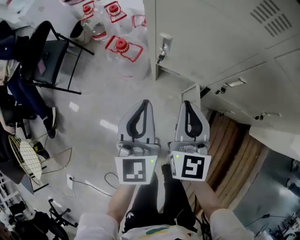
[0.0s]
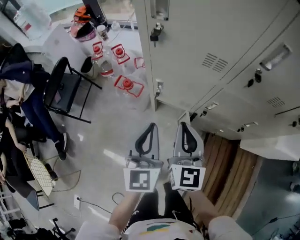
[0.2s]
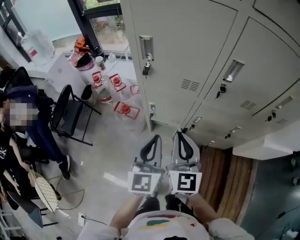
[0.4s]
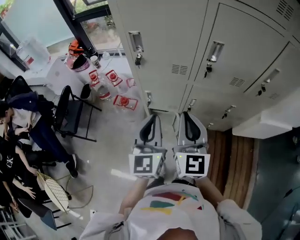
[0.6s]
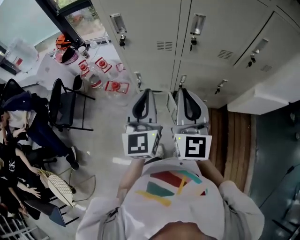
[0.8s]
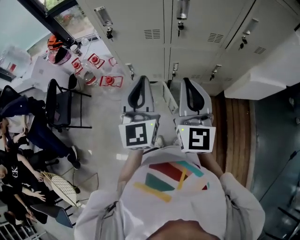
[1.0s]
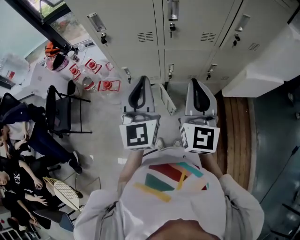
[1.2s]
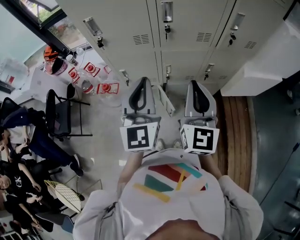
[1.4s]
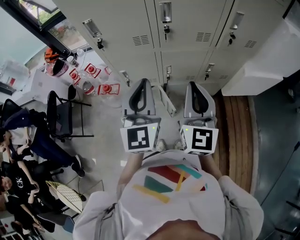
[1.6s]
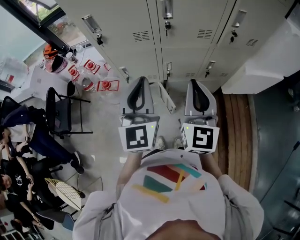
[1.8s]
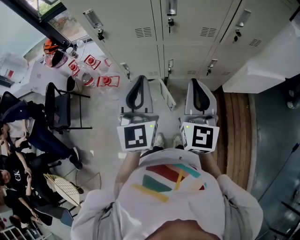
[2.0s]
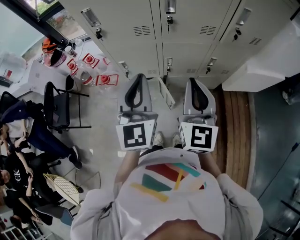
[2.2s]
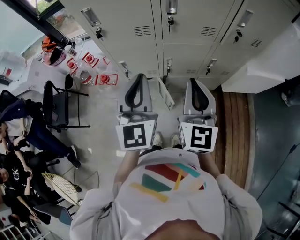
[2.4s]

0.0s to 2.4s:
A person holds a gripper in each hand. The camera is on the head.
0.0s to 1.2s: The right gripper is displaced to the right, backward and upward by about 30 cm, and turns by roughly 30 degrees, while the left gripper heads to the right, upward and backward, covering some 25 cm, and turns by some 20 degrees.
1.2s to 2.4s: The grippers move only a little.

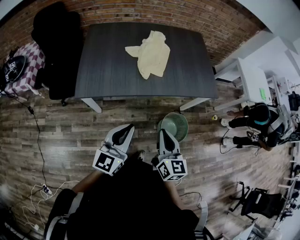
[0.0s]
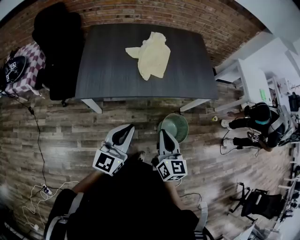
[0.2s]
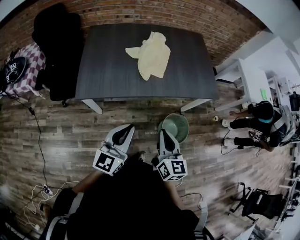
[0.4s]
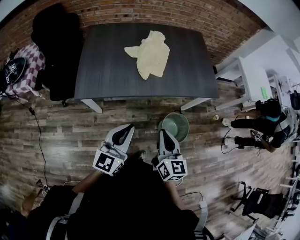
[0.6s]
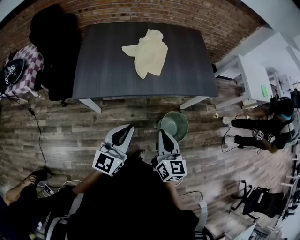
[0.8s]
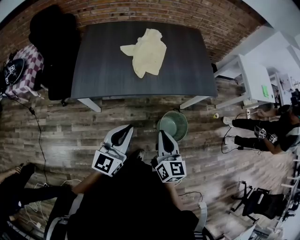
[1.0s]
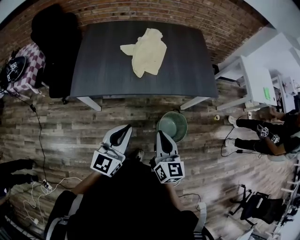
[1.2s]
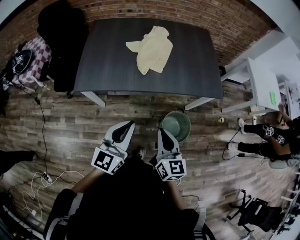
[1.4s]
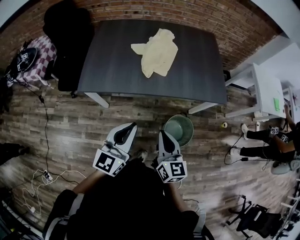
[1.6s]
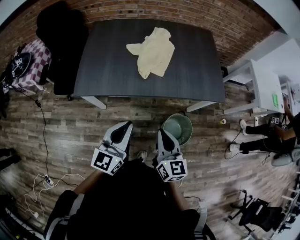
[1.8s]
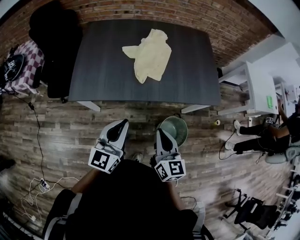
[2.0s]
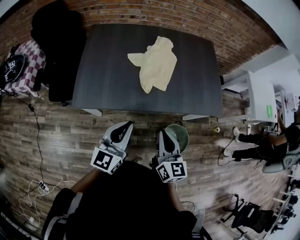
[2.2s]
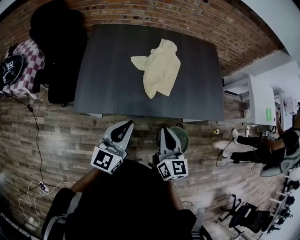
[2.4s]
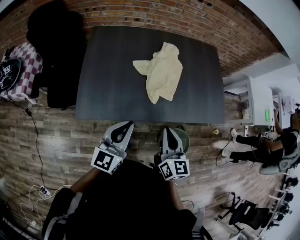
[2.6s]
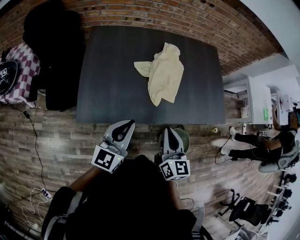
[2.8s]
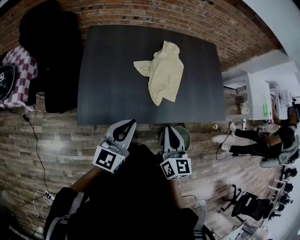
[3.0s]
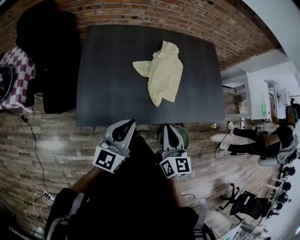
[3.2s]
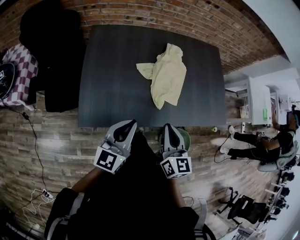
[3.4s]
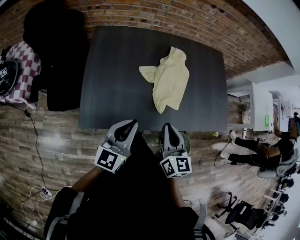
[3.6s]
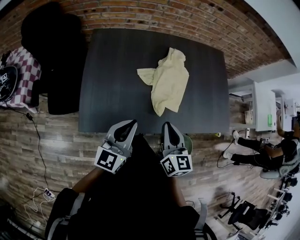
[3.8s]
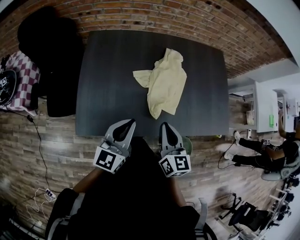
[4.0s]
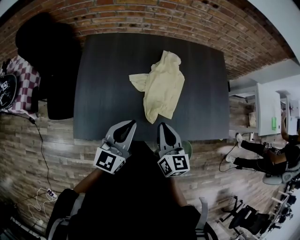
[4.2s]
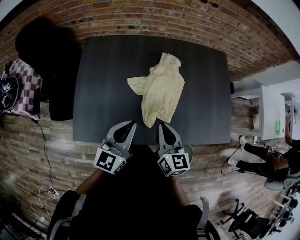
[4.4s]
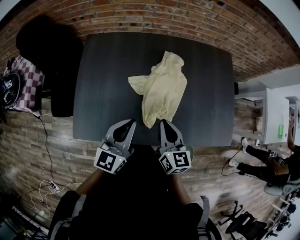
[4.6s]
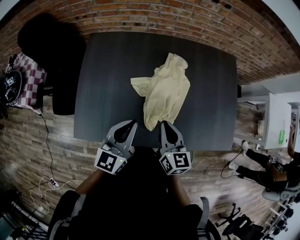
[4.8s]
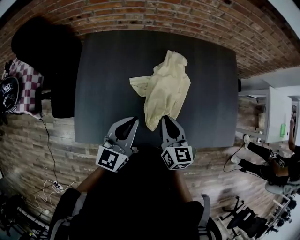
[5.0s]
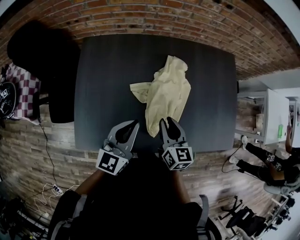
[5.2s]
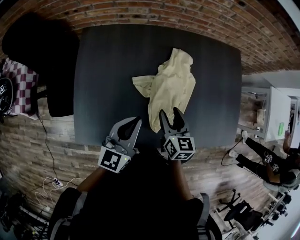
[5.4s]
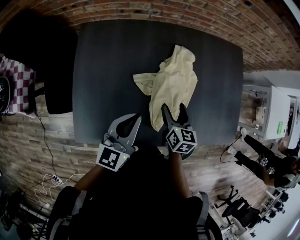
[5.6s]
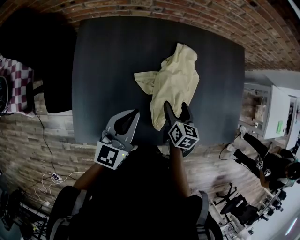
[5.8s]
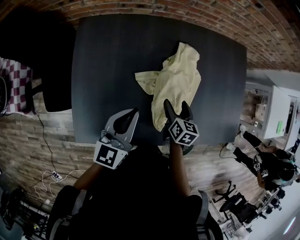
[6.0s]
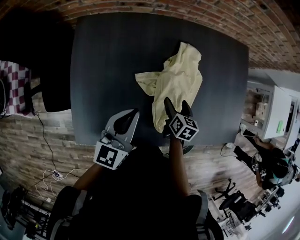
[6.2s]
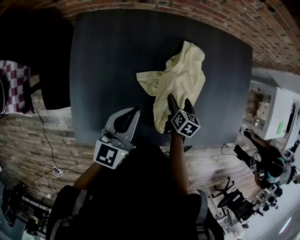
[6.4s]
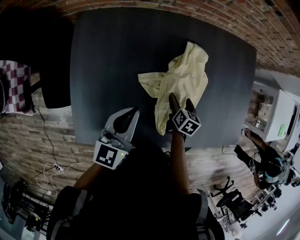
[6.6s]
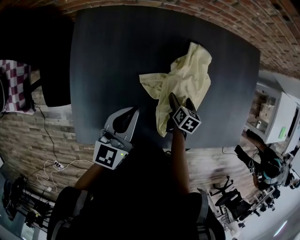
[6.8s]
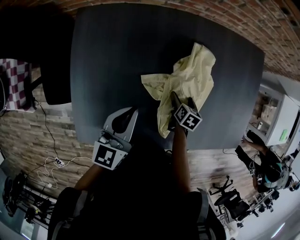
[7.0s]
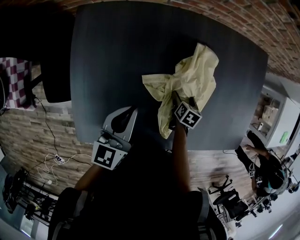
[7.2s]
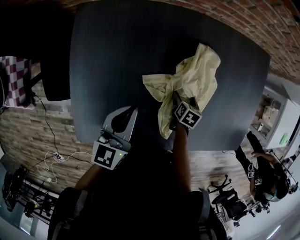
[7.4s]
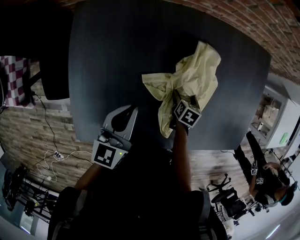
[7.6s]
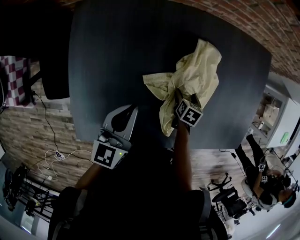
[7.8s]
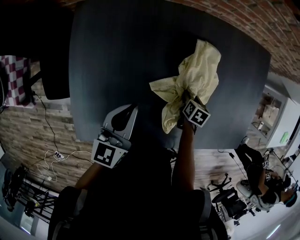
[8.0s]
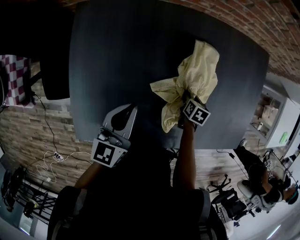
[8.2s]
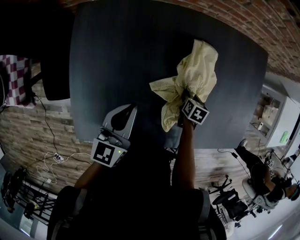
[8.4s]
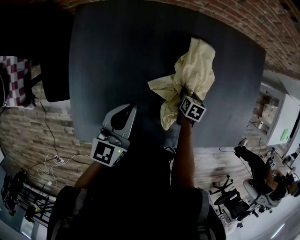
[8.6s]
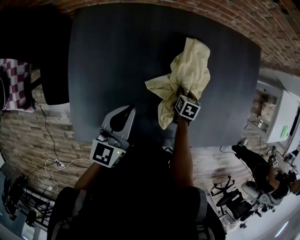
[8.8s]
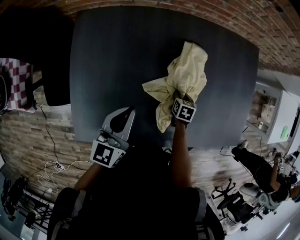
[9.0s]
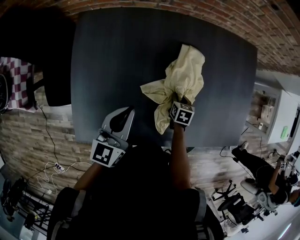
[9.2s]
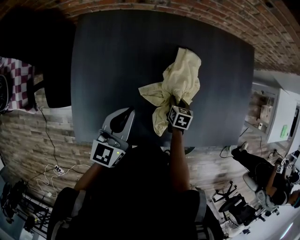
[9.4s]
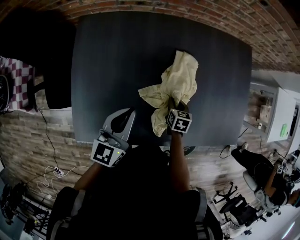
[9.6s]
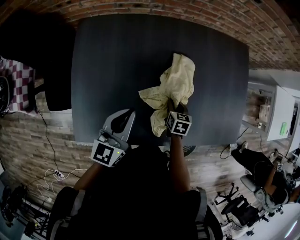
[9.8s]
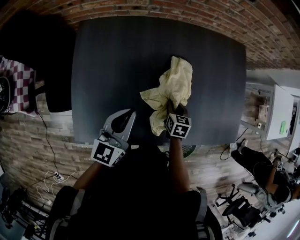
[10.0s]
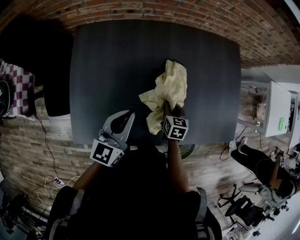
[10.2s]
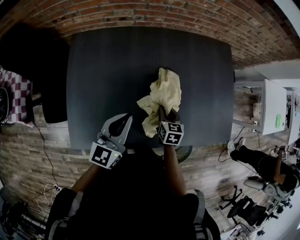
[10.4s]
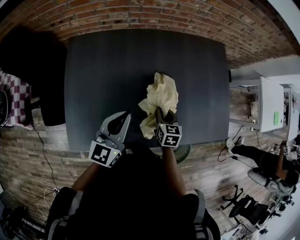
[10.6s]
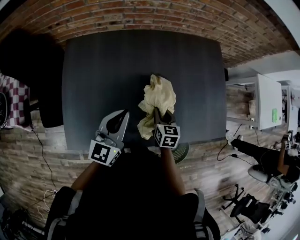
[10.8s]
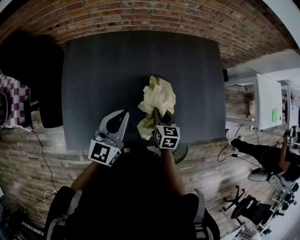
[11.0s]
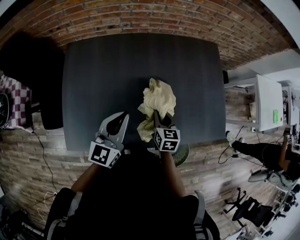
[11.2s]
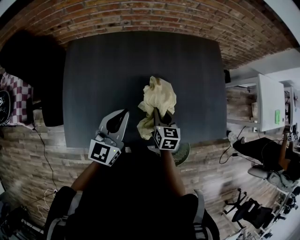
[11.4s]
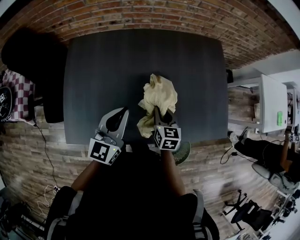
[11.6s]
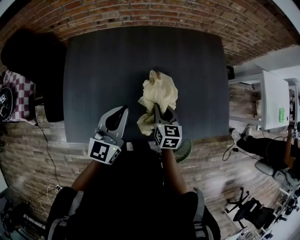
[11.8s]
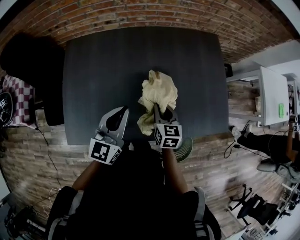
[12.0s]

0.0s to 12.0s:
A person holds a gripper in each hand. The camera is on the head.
0.0s to 1.6s: Both grippers move to the right, approximately 5 cm.
1.6s to 3.0s: Both grippers move forward and to the left, roughly 30 cm.
3.0s to 4.4s: The right gripper heads forward, covering some 15 cm. The left gripper shifts some 15 cm forward and to the right.
4.4s to 6.0s: The right gripper heads downward and forward, covering approximately 25 cm, turns by about 30 degrees, and opens its fingers, while the left gripper heads forward and to the left, covering about 15 cm.
6.0s to 7.6s: The left gripper shifts some 10 cm downward and forward, while the right gripper moves downward, approximately 15 cm, and rotates approximately 30 degrees.
7.6s to 9.0s: The left gripper shifts by about 5 cm. Meanwhile the right gripper closes its fingers.
9.0s to 10.4s: The right gripper goes some 15 cm upward and backward. Meanwhile the left gripper travels to the right and backward by approximately 10 cm.
10.4s to 12.0s: The left gripper travels to the right by some 10 cm. The right gripper goes about 10 cm upward.

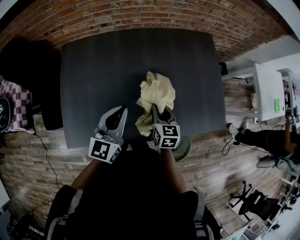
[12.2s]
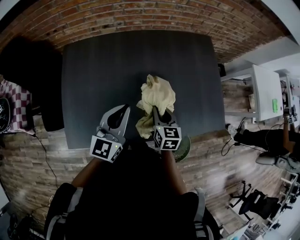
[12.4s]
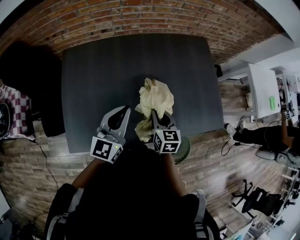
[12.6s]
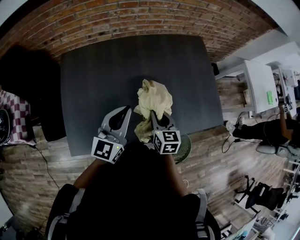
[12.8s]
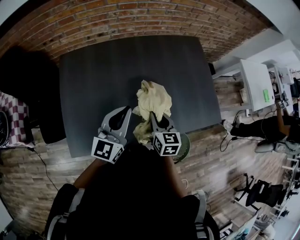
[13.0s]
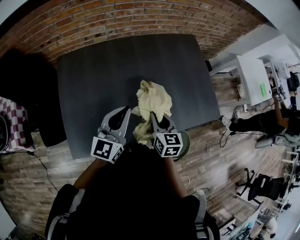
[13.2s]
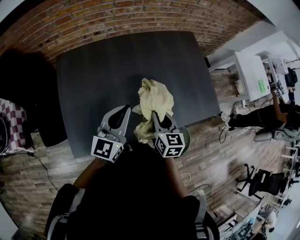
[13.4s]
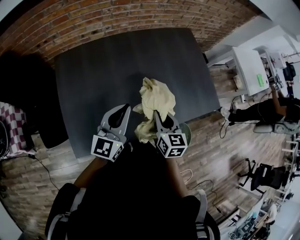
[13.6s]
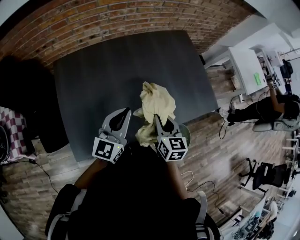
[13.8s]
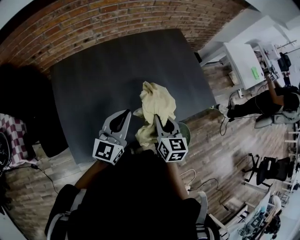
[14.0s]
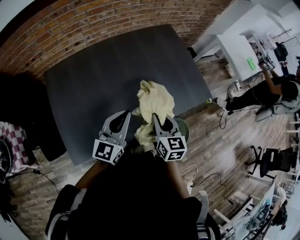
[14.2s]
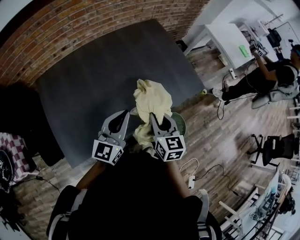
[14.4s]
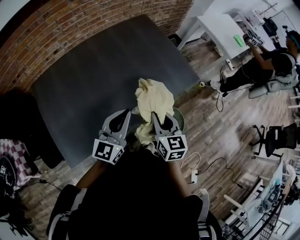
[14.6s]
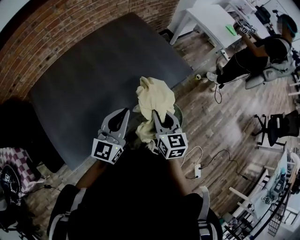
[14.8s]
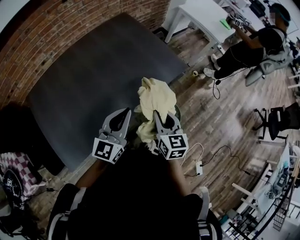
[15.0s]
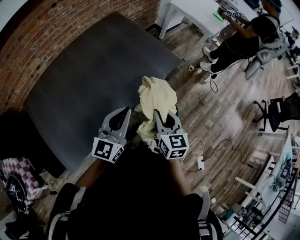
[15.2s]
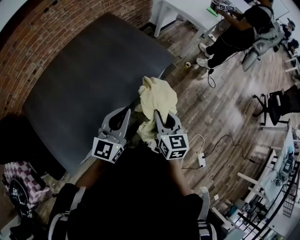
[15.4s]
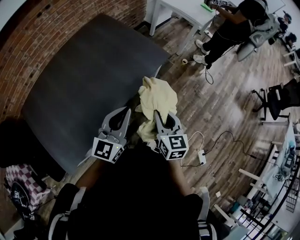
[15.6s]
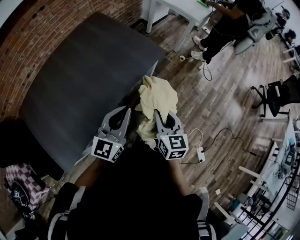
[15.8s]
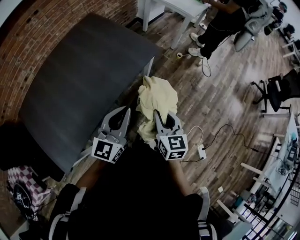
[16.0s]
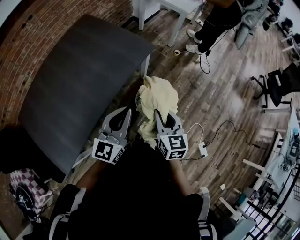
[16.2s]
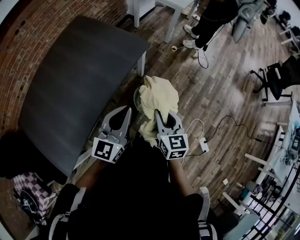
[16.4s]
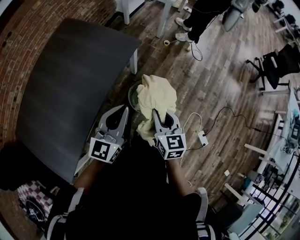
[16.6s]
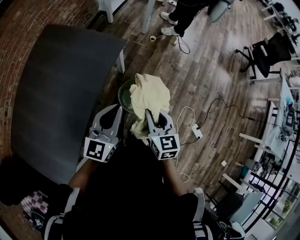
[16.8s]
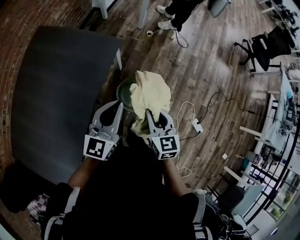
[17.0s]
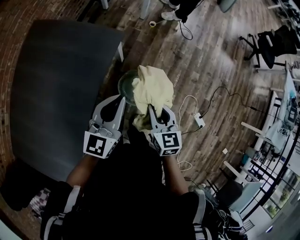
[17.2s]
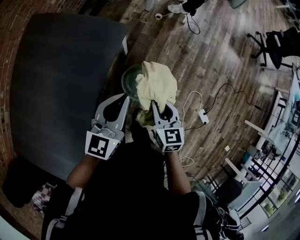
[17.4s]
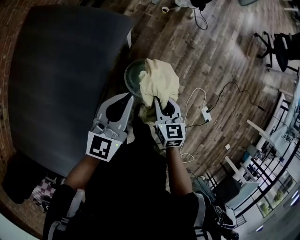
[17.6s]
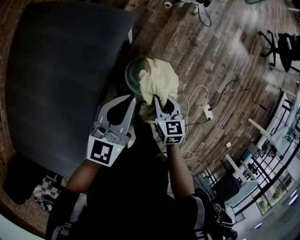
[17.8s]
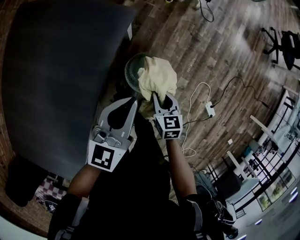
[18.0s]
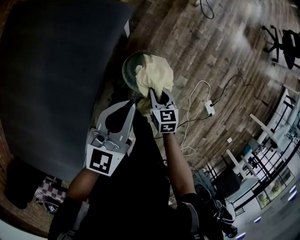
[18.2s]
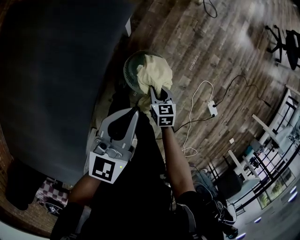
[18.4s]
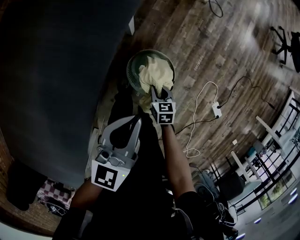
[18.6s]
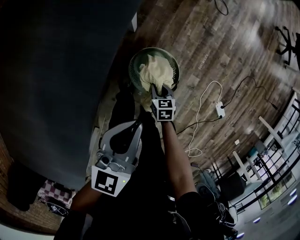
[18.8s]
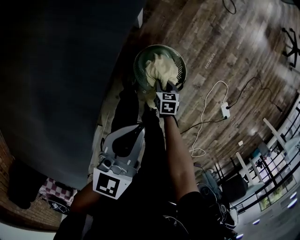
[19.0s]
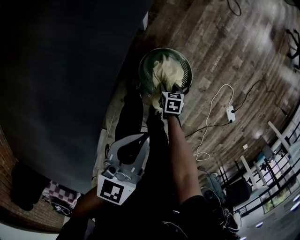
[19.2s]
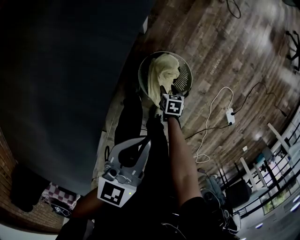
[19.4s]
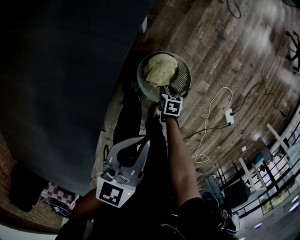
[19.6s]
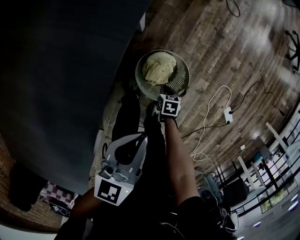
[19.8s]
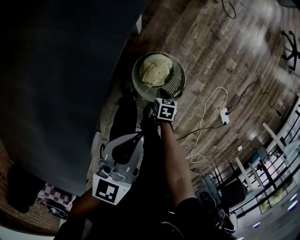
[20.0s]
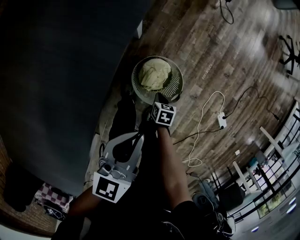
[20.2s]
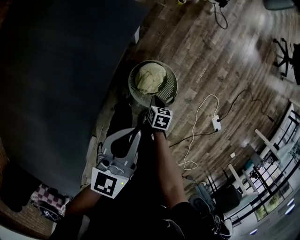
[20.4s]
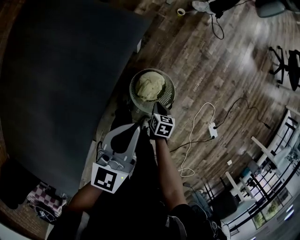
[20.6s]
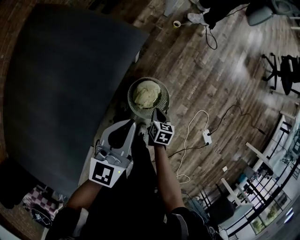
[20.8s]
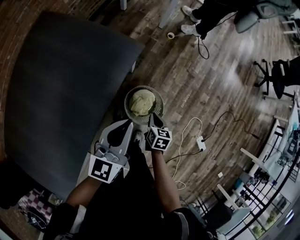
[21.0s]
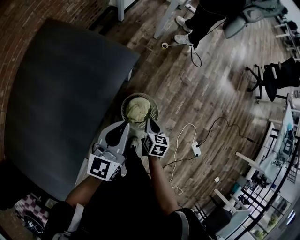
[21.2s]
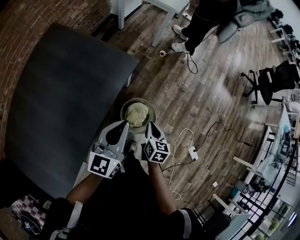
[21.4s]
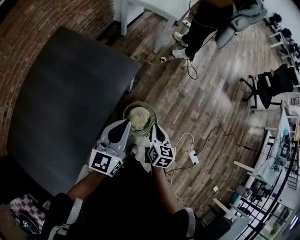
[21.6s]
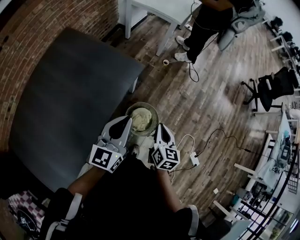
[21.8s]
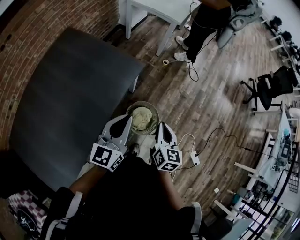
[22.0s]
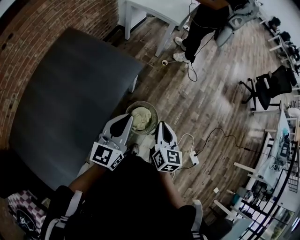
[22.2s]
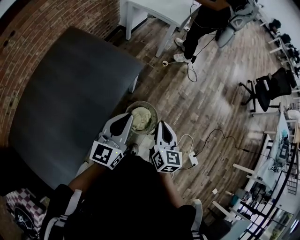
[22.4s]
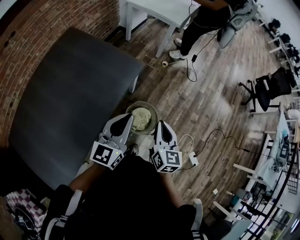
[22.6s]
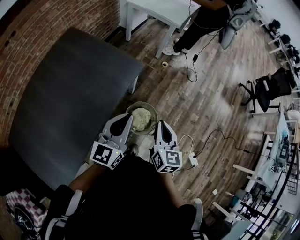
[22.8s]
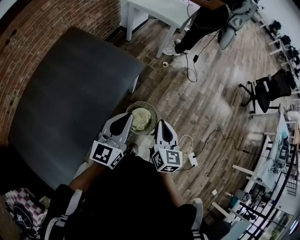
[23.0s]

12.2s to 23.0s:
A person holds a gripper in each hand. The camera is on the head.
12.2s to 13.8s: The right gripper shifts approximately 15 cm backward and upward. Meanwhile the left gripper shifts some 5 cm backward.
13.8s to 15.2s: The two grippers go roughly 25 cm to the right. The right gripper turns by some 20 degrees. The left gripper rotates some 30 degrees.
15.2s to 16.8s: Both grippers travel together to the right, roughly 20 cm. The left gripper swivels roughly 20 degrees.
16.8s to 18.4s: The left gripper travels downward and forward by roughly 20 cm; the right gripper goes roughly 40 cm downward, and turns by roughly 30 degrees.
18.4s to 20.0s: The left gripper shifts about 10 cm downward, while the right gripper heads downward, covering about 20 cm, and swivels about 20 degrees.
20.0s to 21.4s: The left gripper travels upward by about 20 cm. The right gripper is displaced upward by roughly 40 cm, and changes its angle by some 30 degrees.
21.4s to 23.0s: The left gripper travels upward and backward by about 10 cm. The right gripper moves upward, roughly 20 cm, and swivels some 20 degrees.
